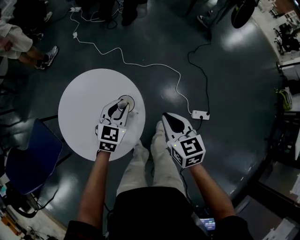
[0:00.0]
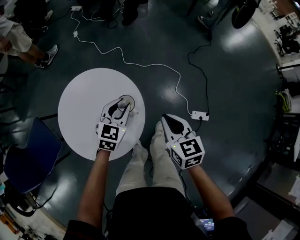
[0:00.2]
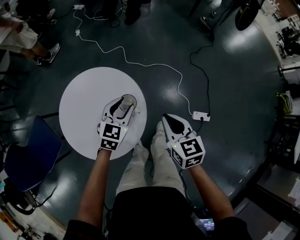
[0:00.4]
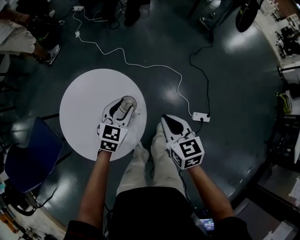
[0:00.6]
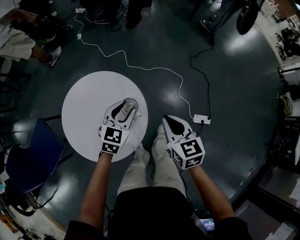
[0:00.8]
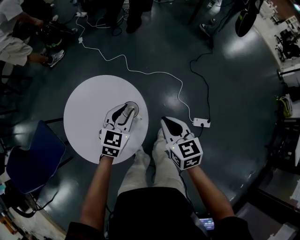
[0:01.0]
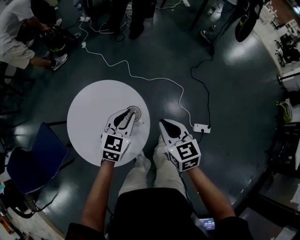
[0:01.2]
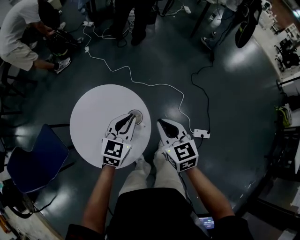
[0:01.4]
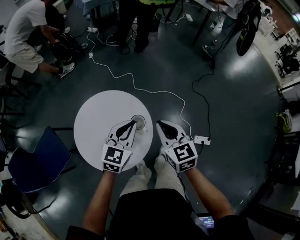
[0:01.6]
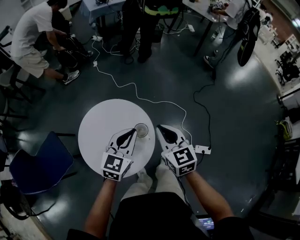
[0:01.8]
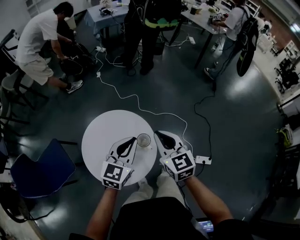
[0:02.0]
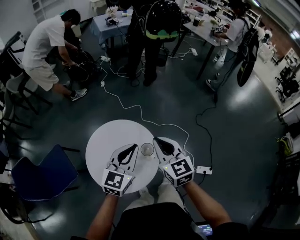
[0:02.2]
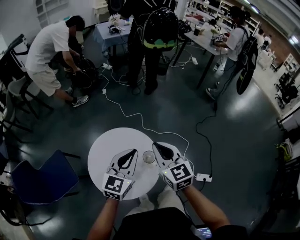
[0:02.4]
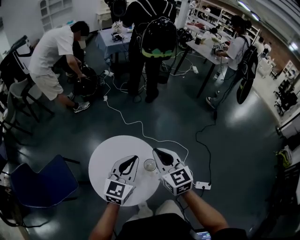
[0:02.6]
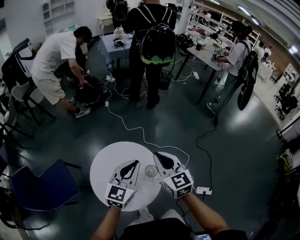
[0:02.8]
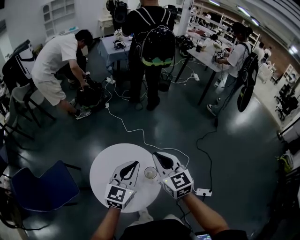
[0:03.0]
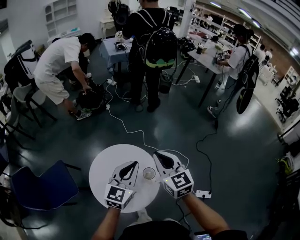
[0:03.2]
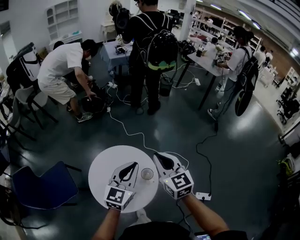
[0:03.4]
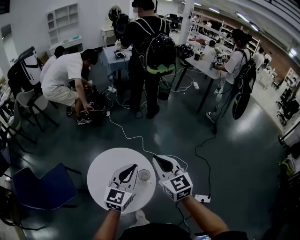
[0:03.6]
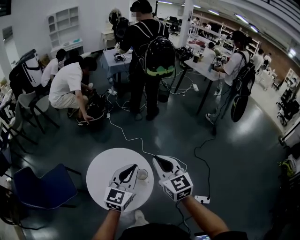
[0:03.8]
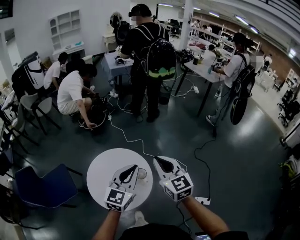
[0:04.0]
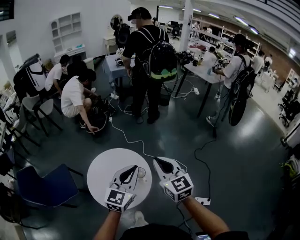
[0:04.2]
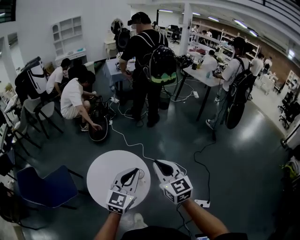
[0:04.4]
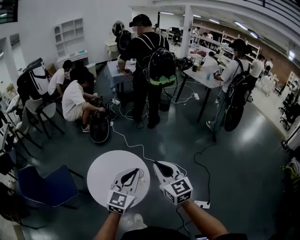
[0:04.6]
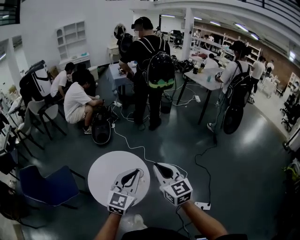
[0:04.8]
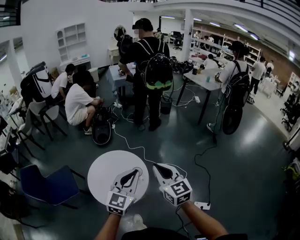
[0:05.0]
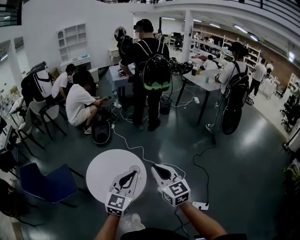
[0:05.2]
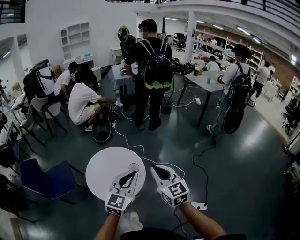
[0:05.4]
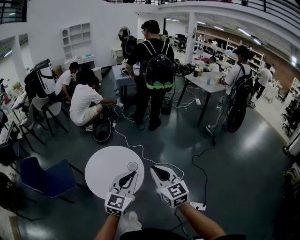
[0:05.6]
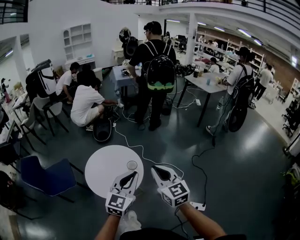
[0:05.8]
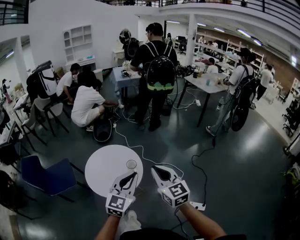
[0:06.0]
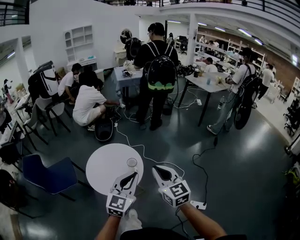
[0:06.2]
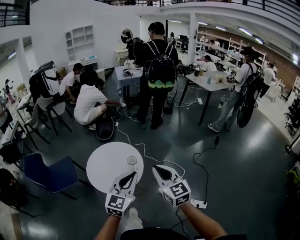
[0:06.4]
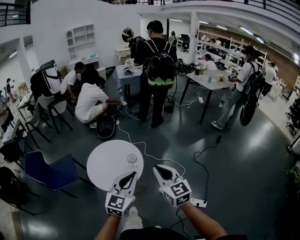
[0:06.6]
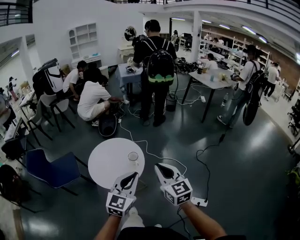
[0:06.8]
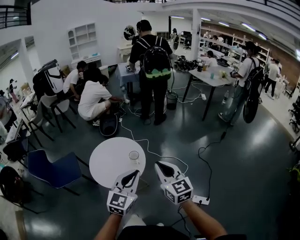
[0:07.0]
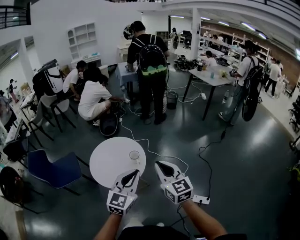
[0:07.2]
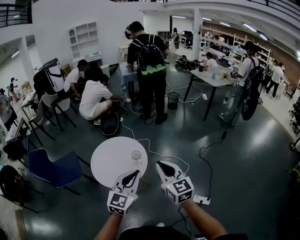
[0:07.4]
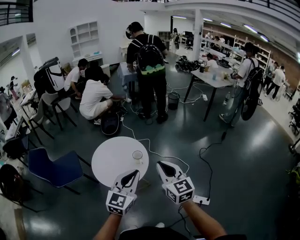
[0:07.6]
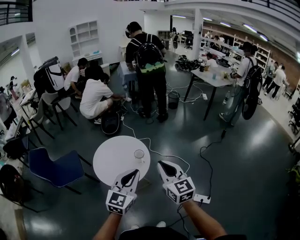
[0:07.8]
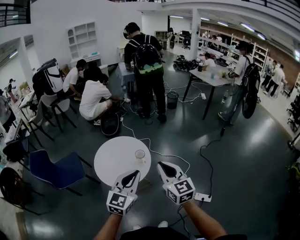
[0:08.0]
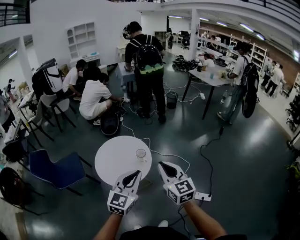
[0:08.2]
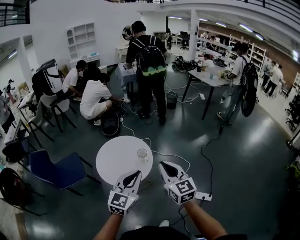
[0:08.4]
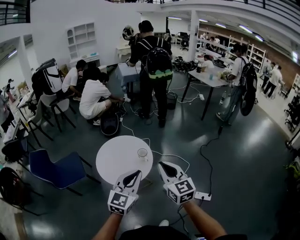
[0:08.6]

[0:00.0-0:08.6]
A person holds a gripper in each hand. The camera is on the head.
0.0 to 1.4 s: The left gripper moves upward, approximately 10 cm; the right gripper shifts roughly 10 cm upward and to the left.
1.4 to 2.8 s: Both grippers move upward and to the left, some 20 cm.
2.8 to 4.4 s: Both grippers travel together backward, to the right and upward, roughly 20 cm.
4.4 to 5.8 s: The two grippers go approximately 15 cm backward.
5.8 to 7.2 s: The two grippers go roughly 10 cm backward.
7.2 to 8.6 s: The two grippers go roughly 10 cm to the left.

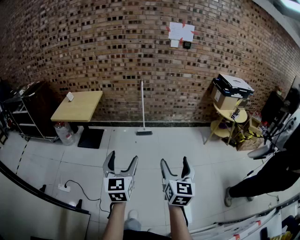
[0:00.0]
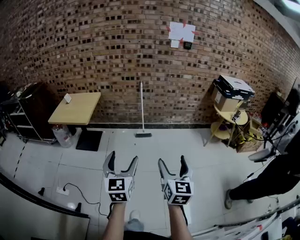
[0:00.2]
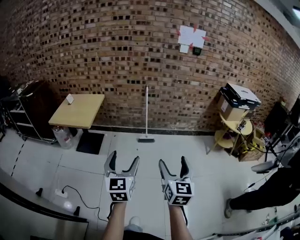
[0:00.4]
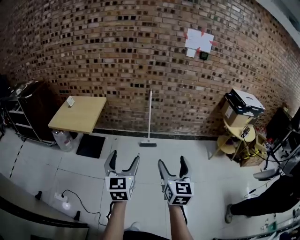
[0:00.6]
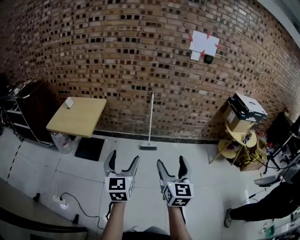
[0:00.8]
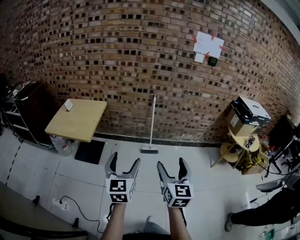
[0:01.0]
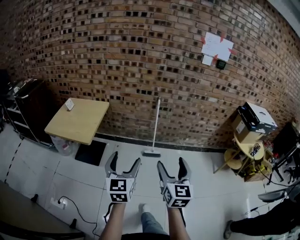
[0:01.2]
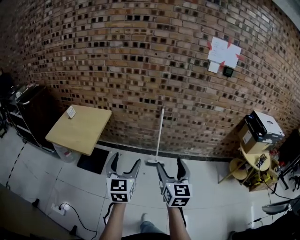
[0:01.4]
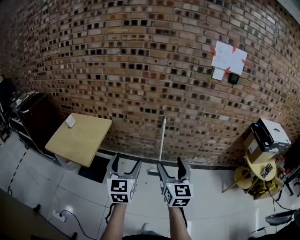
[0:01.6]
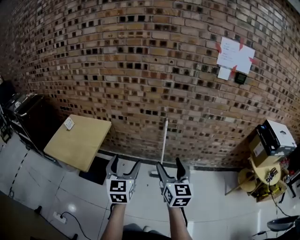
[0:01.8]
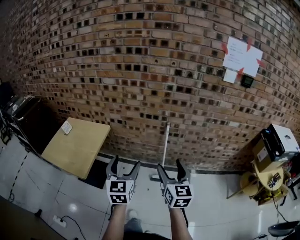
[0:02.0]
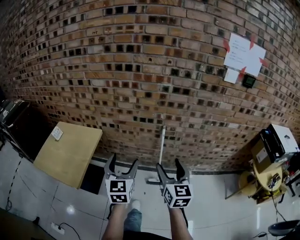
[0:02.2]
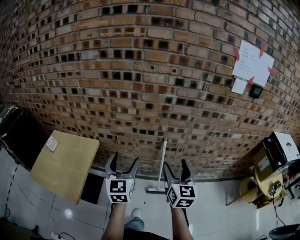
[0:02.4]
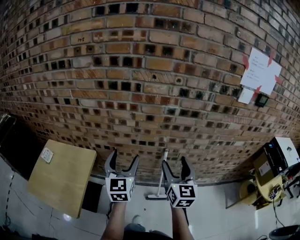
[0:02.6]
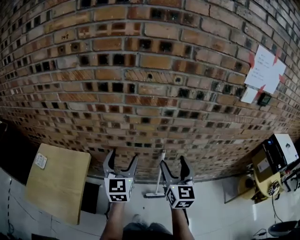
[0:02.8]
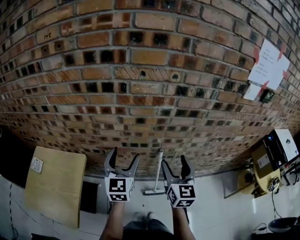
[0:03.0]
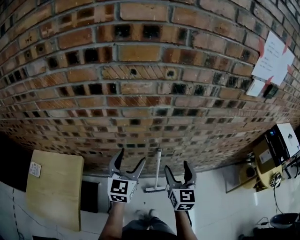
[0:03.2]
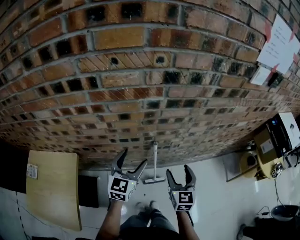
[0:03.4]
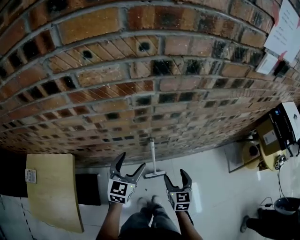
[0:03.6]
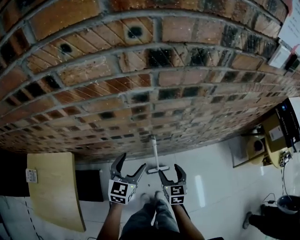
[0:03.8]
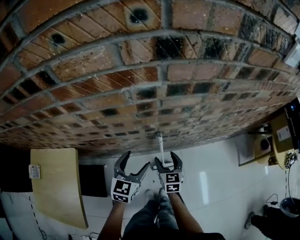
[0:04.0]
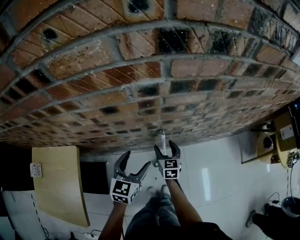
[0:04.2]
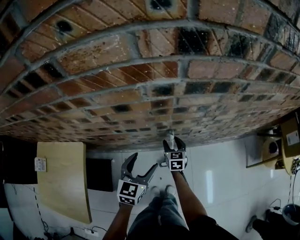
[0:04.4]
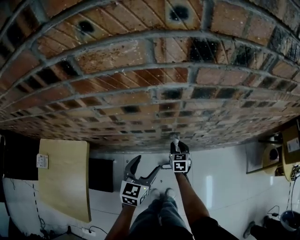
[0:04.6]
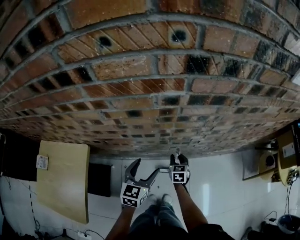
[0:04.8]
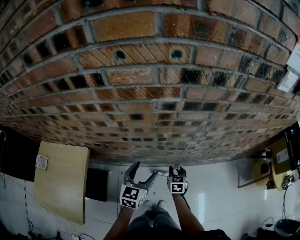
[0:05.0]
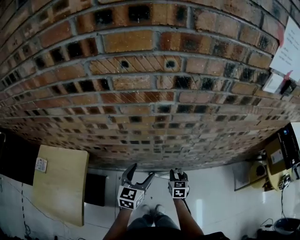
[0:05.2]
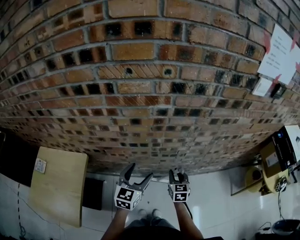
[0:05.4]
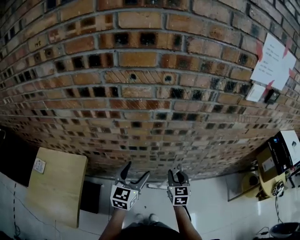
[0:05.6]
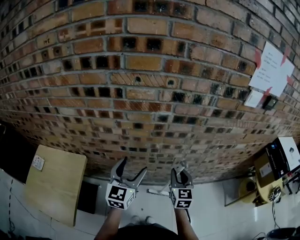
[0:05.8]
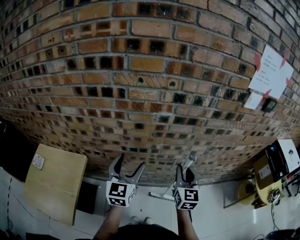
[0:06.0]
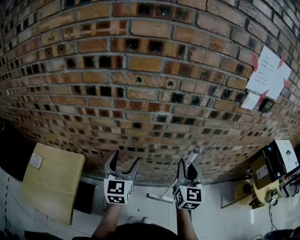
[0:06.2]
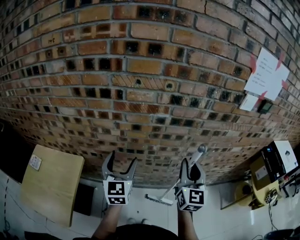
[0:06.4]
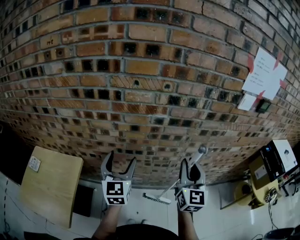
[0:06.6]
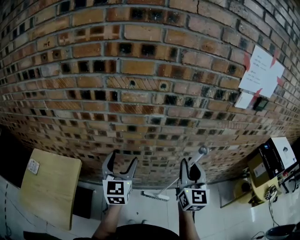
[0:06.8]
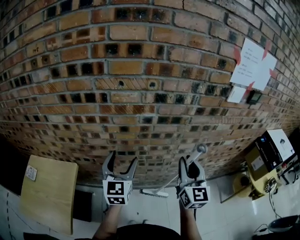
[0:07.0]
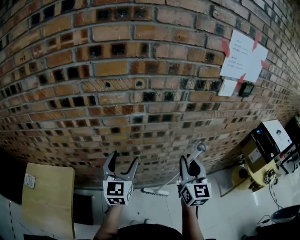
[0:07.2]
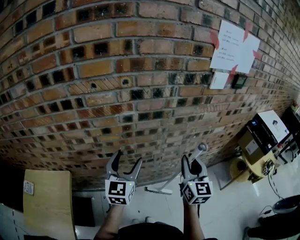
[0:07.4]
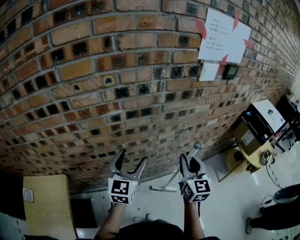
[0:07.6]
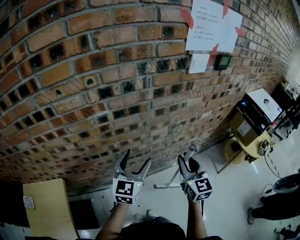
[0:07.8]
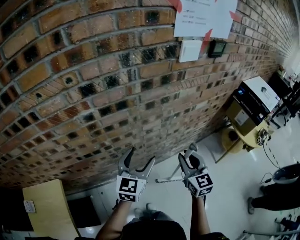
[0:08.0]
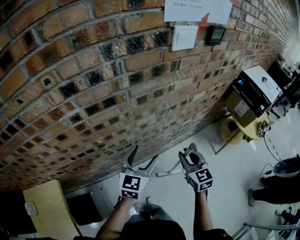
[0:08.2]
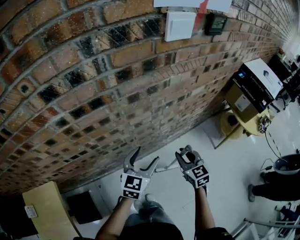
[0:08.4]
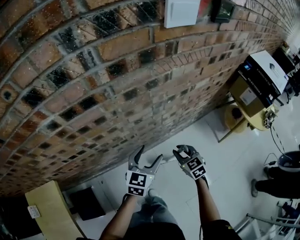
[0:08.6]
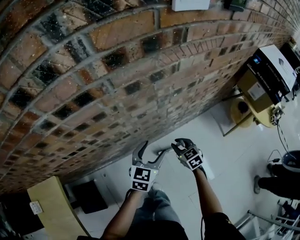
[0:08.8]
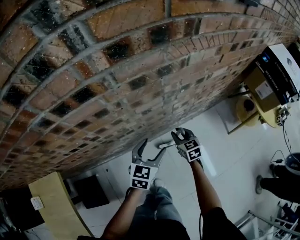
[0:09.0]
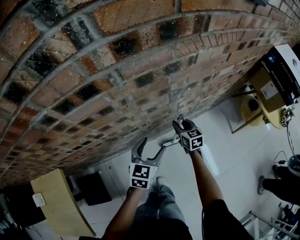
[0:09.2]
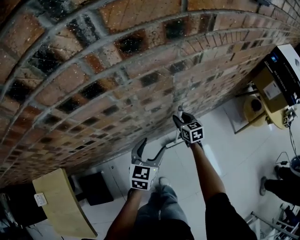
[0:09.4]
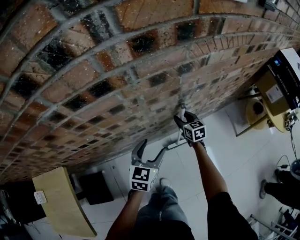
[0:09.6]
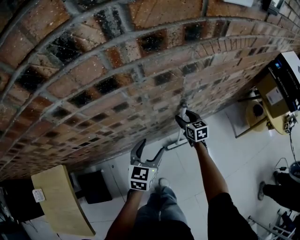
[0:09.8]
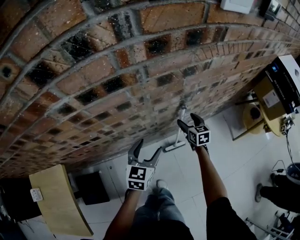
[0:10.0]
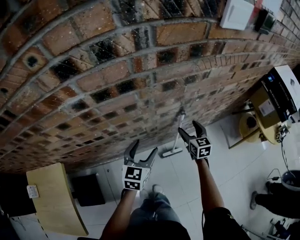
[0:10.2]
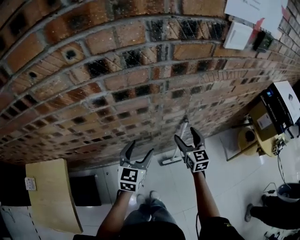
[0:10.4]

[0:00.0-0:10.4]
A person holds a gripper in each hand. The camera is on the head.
0.0 to 1.4 s: The two grippers travel together, forward, about 50 cm.
1.4 to 3.0 s: The two grippers travel together, forward, approximately 60 cm.
3.0 to 4.4 s: The left gripper goes some 25 cm downward, and changes its angle by about 30 degrees, while the right gripper travels downward and forward by approximately 40 cm, and changes its angle by roughly 30 degrees.
4.4 to 6.0 s: The left gripper heads upward, covering approximately 25 cm, and rotates some 30 degrees. Meanwhile the right gripper goes approximately 35 cm upward, rotates roughly 30 degrees, and closes.
6.0 to 7.4 s: The right gripper shifts approximately 15 cm to the right and upward, while the left gripper shifts about 10 cm to the right.
7.4 to 9.0 s: The left gripper heads downward and to the right, covering some 35 cm, and turns by some 40 degrees; the right gripper is displaced downward by some 40 cm, and tips its fingers downward by some 30 degrees.
9.0 to 10.4 s: The right gripper shifts some 20 cm upward, and opens. The left gripper shifts some 15 cm to the left and upward.

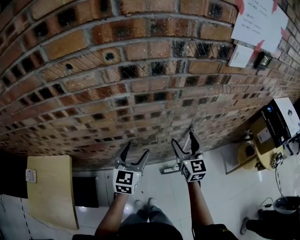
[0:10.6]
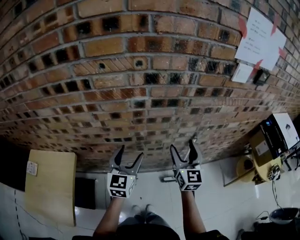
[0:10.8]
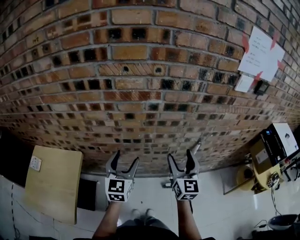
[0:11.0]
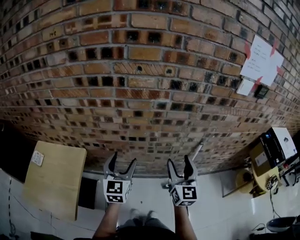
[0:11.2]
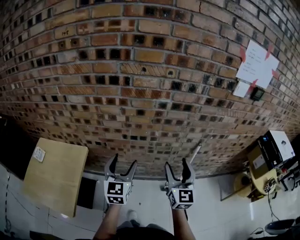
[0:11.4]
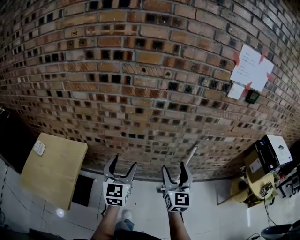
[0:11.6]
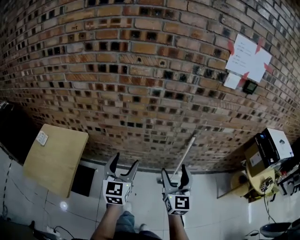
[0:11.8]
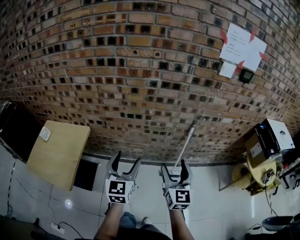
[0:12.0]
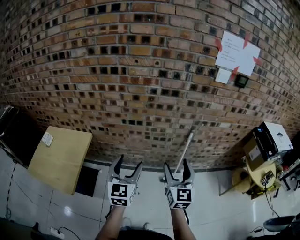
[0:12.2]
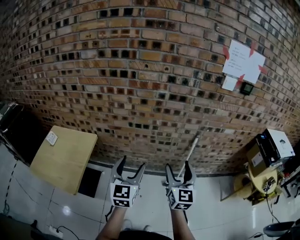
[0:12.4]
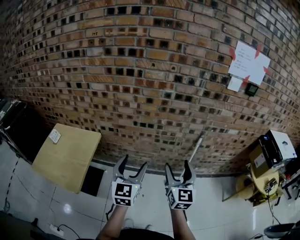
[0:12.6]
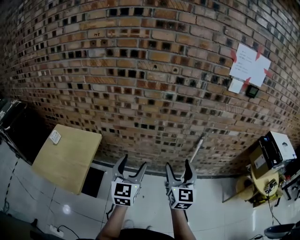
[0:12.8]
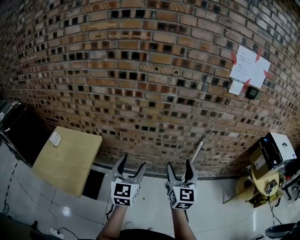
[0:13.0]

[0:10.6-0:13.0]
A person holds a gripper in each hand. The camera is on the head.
10.6 to 11.8 s: The left gripper moves backward and to the left, some 30 cm, and rotates some 20 degrees. The right gripper is displaced backward by approximately 30 cm.
11.8 to 13.0 s: The left gripper travels backward by about 5 cm. The right gripper shifts roughly 5 cm to the left.

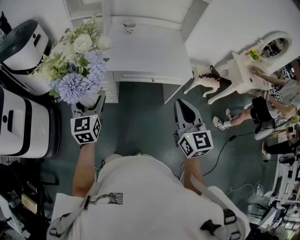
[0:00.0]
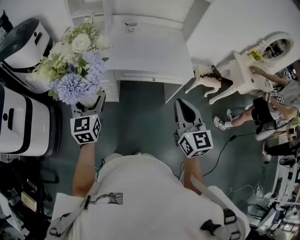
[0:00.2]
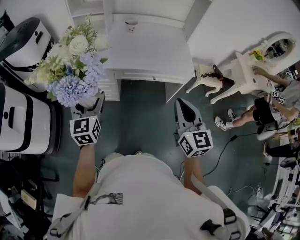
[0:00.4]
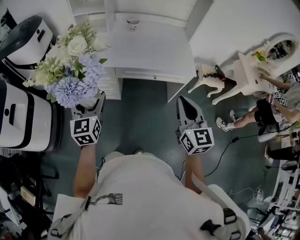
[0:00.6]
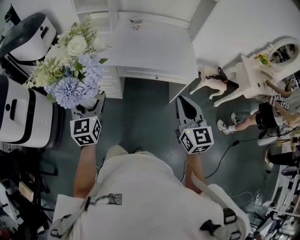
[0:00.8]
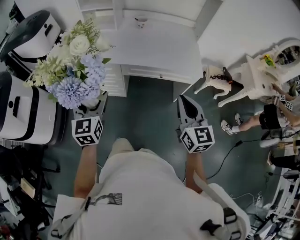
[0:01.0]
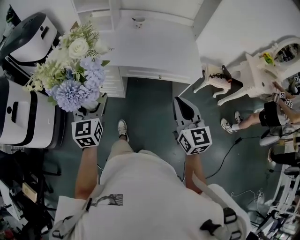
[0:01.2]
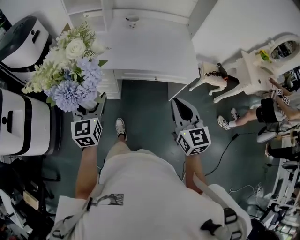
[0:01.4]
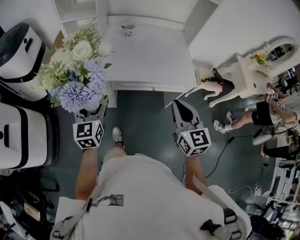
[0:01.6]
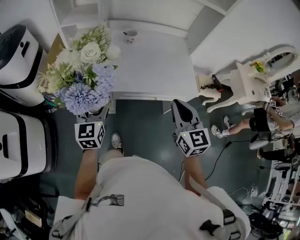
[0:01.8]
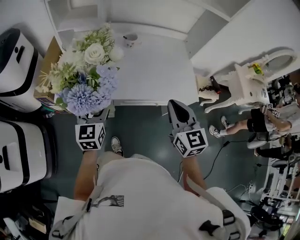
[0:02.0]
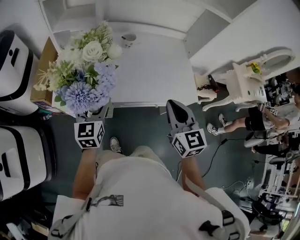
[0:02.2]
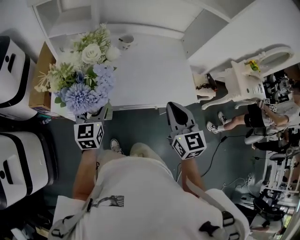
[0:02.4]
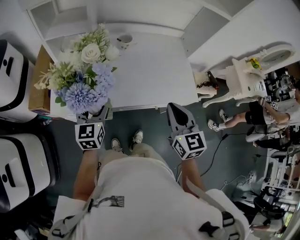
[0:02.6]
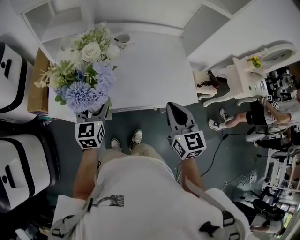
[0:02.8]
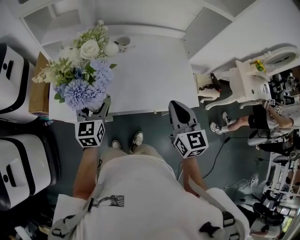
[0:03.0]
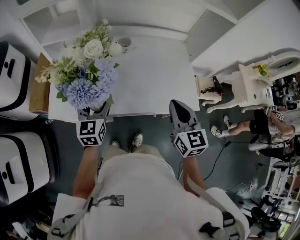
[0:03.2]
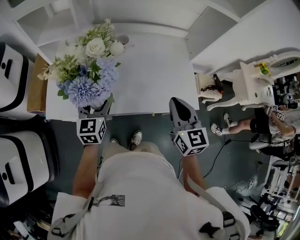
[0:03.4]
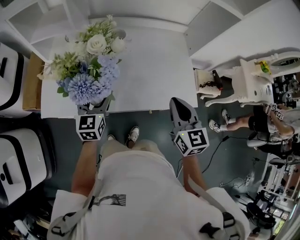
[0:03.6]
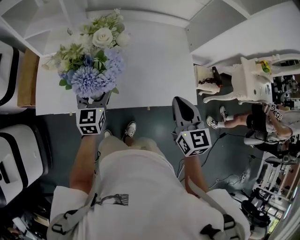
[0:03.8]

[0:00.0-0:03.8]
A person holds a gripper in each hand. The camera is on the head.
0.0 to 1.2 s: The right gripper changes place by roughly 5 cm.
1.2 to 2.6 s: The two grippers go about 30 cm forward.
2.6 to 3.8 s: The right gripper shifts roughly 15 cm to the right and forward, while the left gripper moves to the right, forward and downward, some 15 cm.
